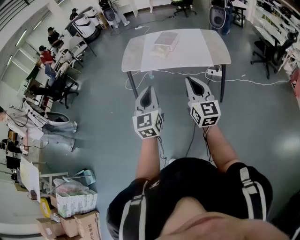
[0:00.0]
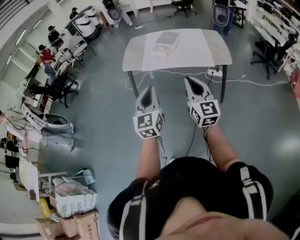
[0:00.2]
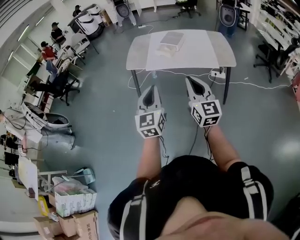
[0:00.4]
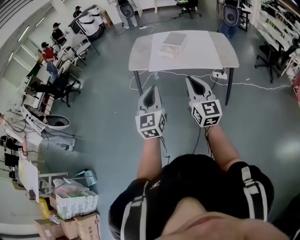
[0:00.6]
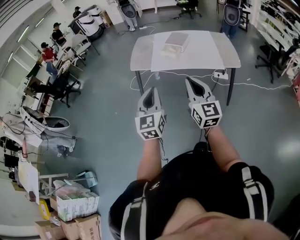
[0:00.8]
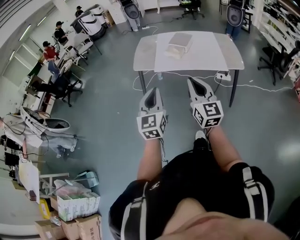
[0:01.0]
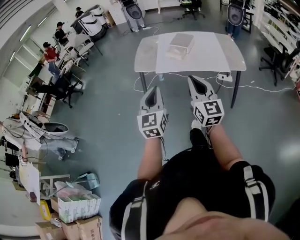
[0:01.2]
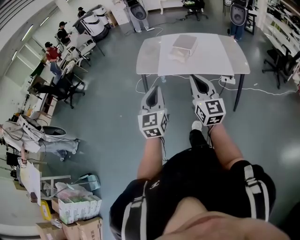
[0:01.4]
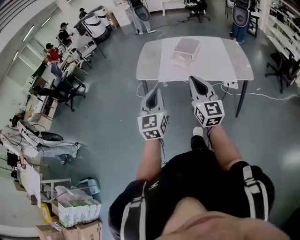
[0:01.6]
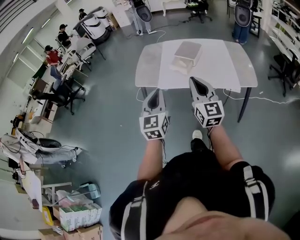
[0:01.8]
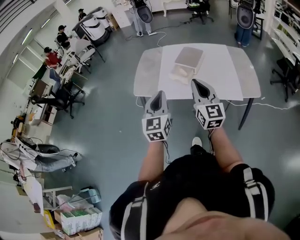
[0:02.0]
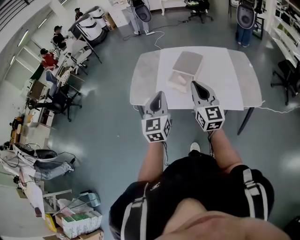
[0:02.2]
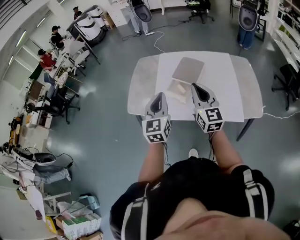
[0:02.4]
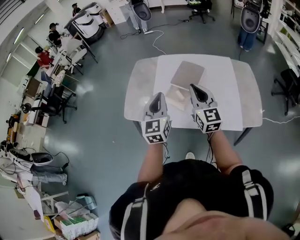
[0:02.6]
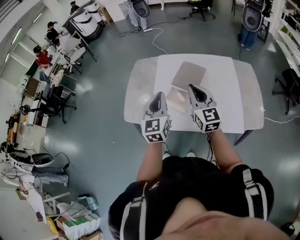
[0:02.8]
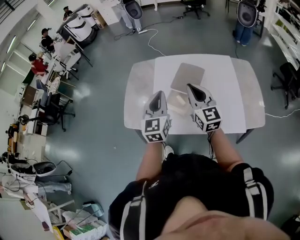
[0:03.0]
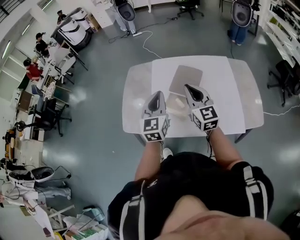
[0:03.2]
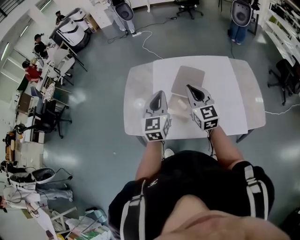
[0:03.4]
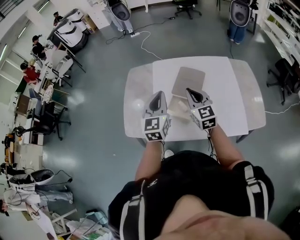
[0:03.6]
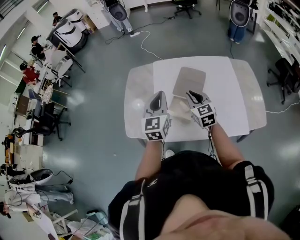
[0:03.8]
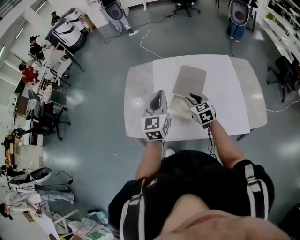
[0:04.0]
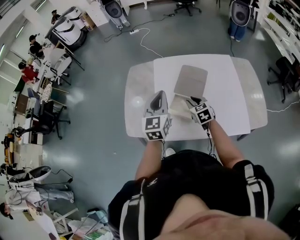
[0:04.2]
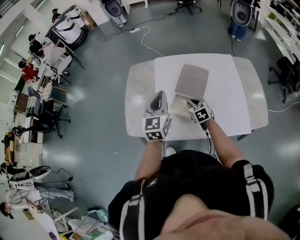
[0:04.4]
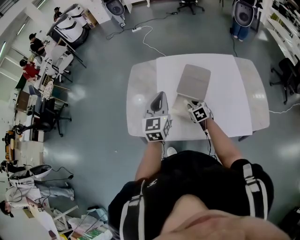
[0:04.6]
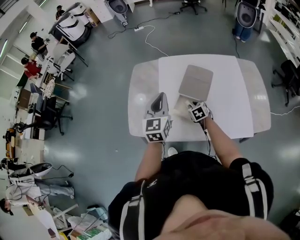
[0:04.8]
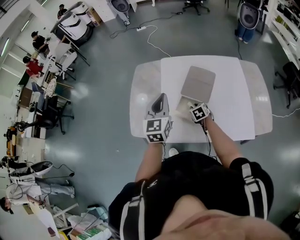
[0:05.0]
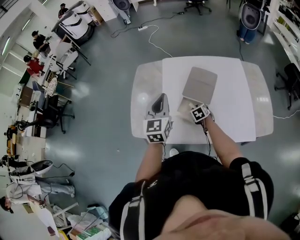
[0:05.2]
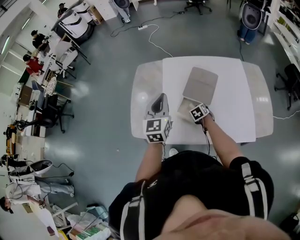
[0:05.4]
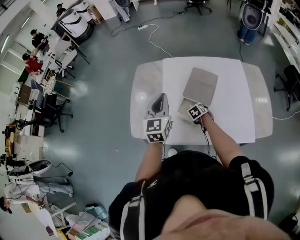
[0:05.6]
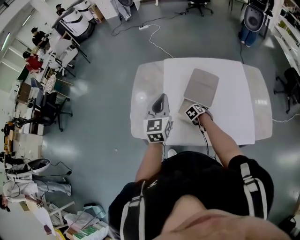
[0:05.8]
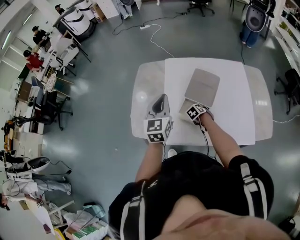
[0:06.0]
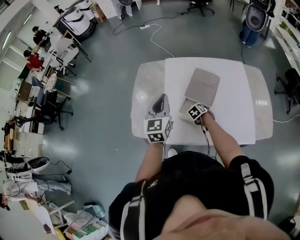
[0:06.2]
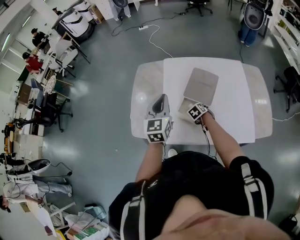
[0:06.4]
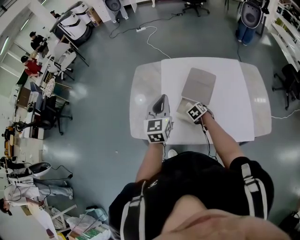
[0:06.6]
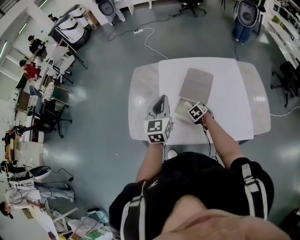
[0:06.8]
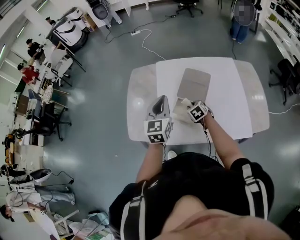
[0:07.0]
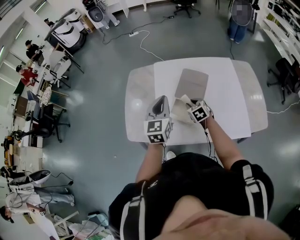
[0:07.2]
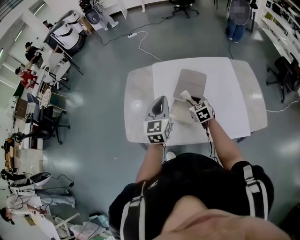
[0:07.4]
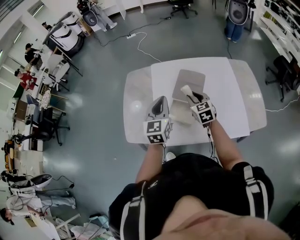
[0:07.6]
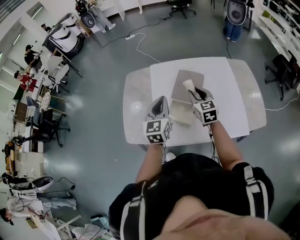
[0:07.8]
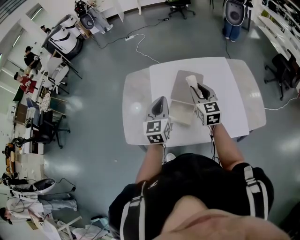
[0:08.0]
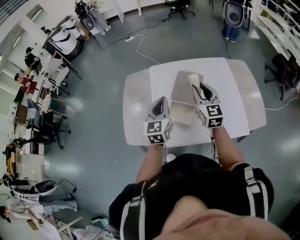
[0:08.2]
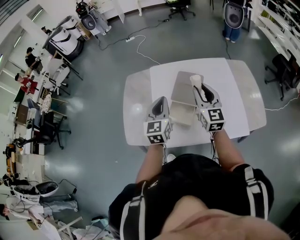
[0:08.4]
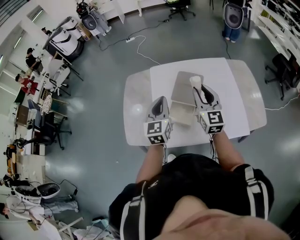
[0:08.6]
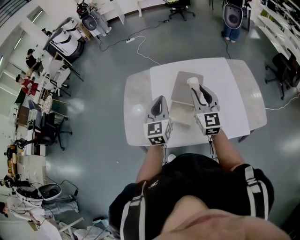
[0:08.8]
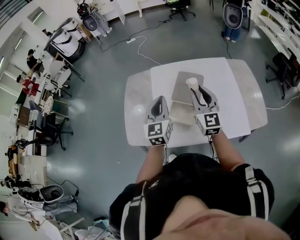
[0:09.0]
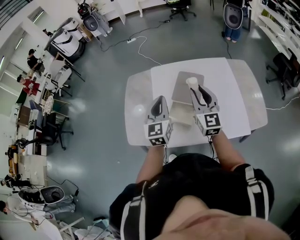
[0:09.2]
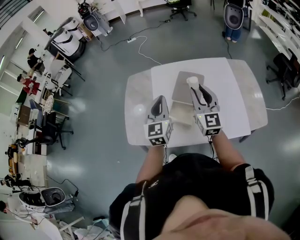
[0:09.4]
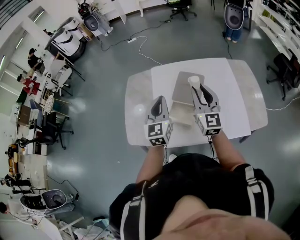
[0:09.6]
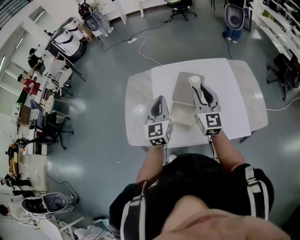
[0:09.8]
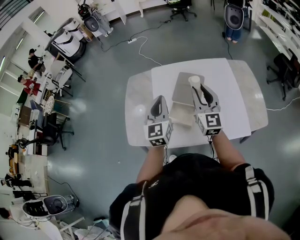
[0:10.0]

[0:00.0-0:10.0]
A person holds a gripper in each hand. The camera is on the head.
0:00.0 to 0:01.4: Both grippers move to the left and forward, some 15 cm.
0:01.4 to 0:02.8: The pair of grippers is taken forward, roughly 50 cm.
0:02.8 to 0:04.2: The left gripper heads forward, covering roughly 10 cm. The right gripper moves downward and forward, approximately 25 cm, and points its fingers roughly 40 degrees further downward.
0:04.2 to 0:05.8: The right gripper heads downward, covering roughly 20 cm, and points its fingers some 40 degrees further downward, while the left gripper shifts by roughly 5 cm.
0:05.8 to 0:07.2: The right gripper shifts some 15 cm upward, and turns by approximately 30 degrees.
0:07.2 to 0:08.6: The right gripper goes approximately 25 cm upward, and tilts its fingers some 50 degrees upward.
0:08.6 to 0:10.0: The grippers move only a little.

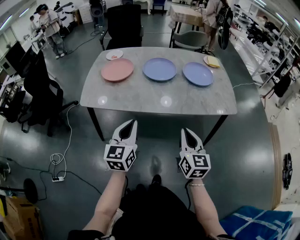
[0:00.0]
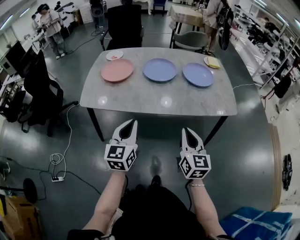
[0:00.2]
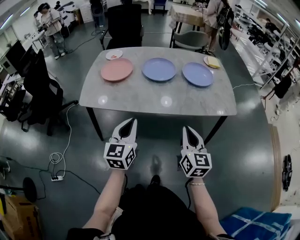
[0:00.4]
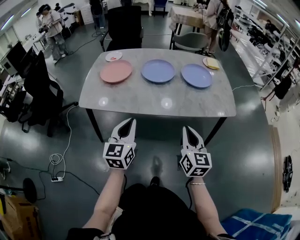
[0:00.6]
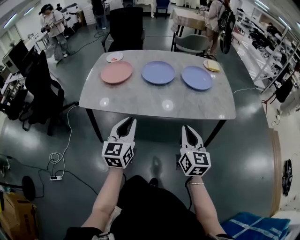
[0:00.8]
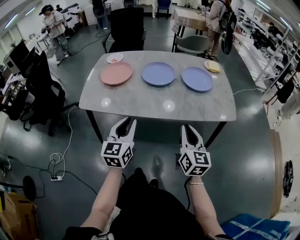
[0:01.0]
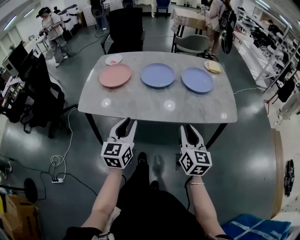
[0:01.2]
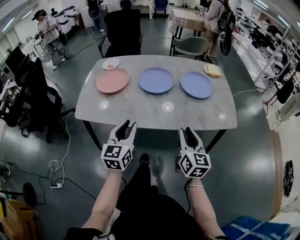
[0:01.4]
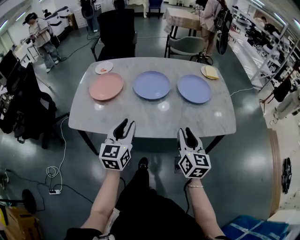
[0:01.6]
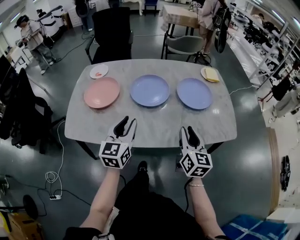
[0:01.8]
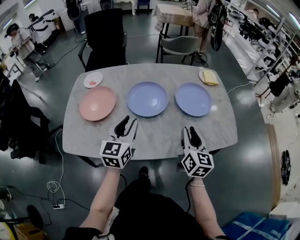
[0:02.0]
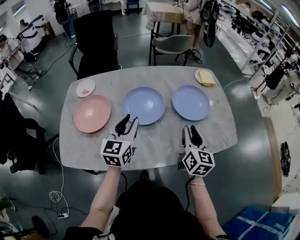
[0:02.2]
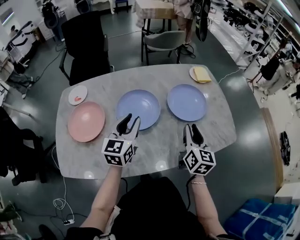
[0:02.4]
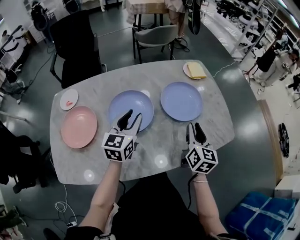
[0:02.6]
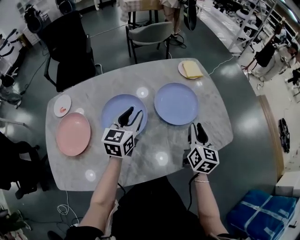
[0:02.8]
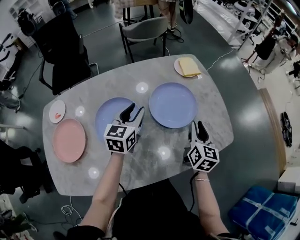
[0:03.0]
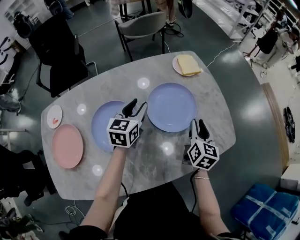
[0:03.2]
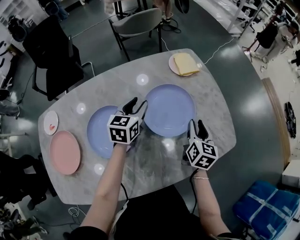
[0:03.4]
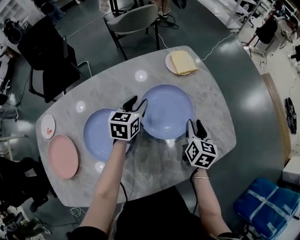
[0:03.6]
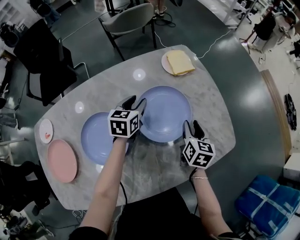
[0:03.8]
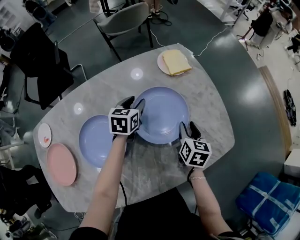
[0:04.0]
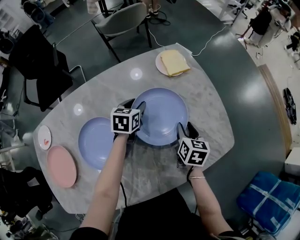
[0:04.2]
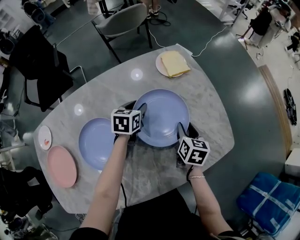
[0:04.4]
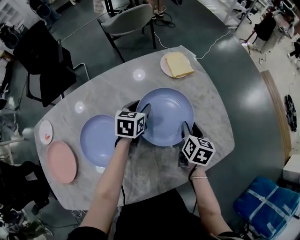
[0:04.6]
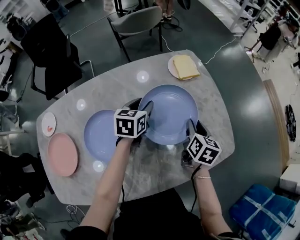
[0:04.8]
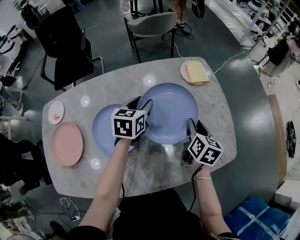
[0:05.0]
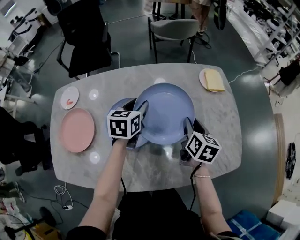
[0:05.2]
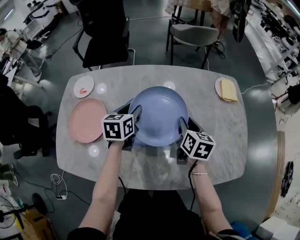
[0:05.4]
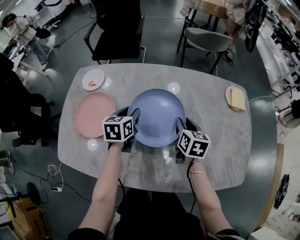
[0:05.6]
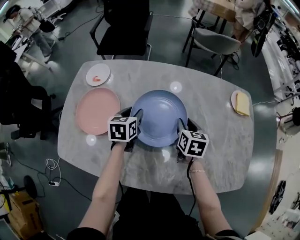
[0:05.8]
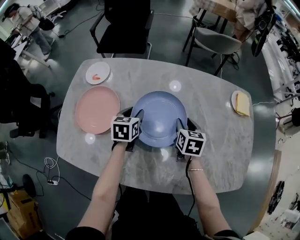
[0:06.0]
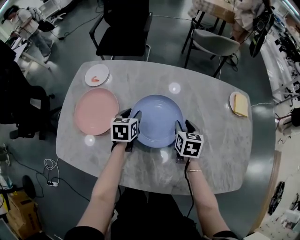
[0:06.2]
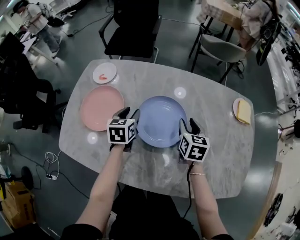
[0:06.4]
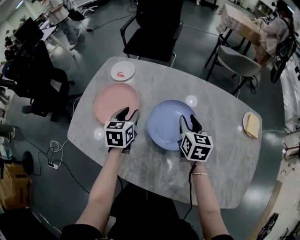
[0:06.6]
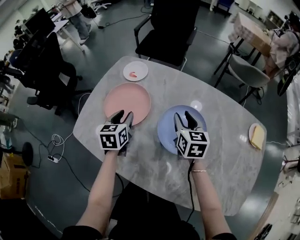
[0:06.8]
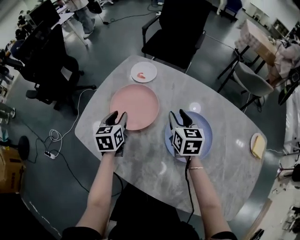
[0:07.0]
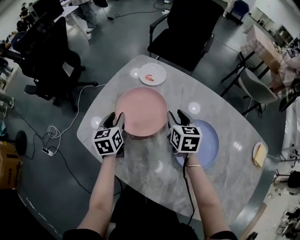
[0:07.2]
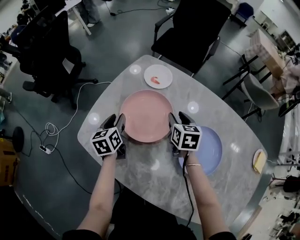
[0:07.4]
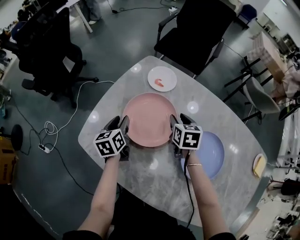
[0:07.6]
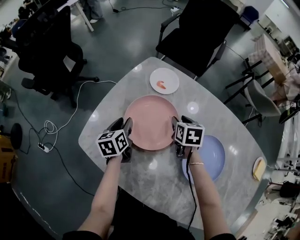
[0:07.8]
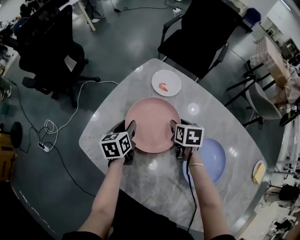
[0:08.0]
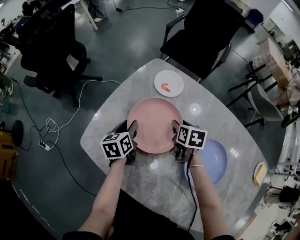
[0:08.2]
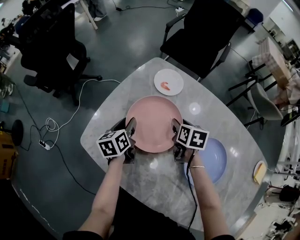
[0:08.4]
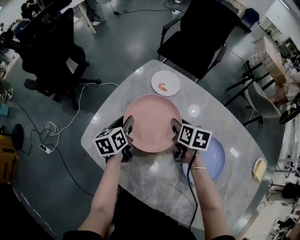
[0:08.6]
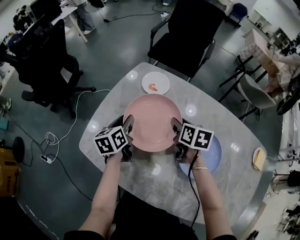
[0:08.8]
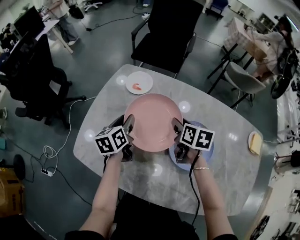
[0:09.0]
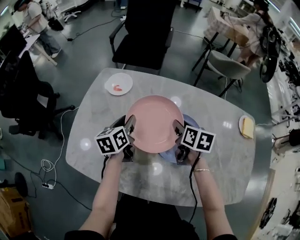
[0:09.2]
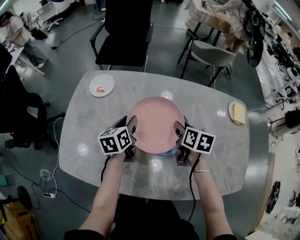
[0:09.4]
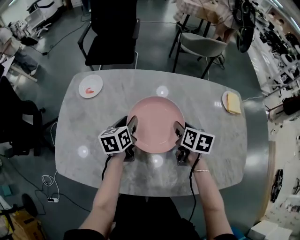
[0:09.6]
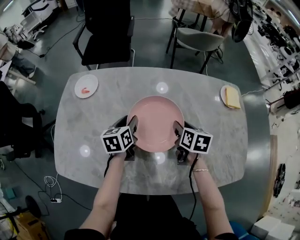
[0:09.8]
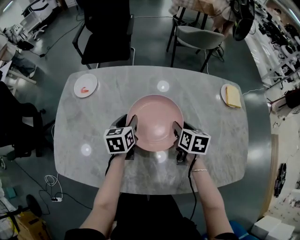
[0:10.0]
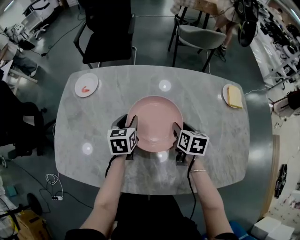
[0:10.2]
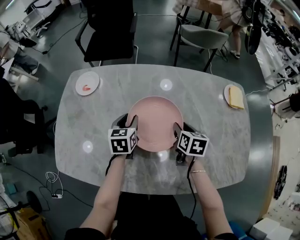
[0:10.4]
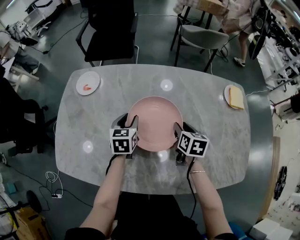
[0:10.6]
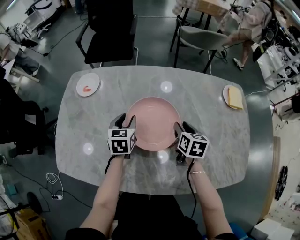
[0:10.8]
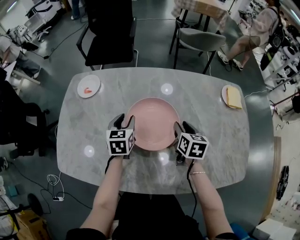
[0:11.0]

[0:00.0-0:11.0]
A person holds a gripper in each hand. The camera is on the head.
0:00.0 to 0:01.6: The grippers both shift forward by about 15 cm. The right gripper opens its fingers, while the left gripper opens its fingers.
0:01.6 to 0:03.2: The right gripper changes place by about 35 cm, and swivels approximately 30 degrees. The left gripper ends up some 40 cm from where it was, and swivels approximately 30 degrees.
0:03.2 to 0:04.8: The grippers both shift forward by approximately 5 cm.
0:04.8 to 0:06.2: The right gripper shifts by roughly 30 cm, and turns by about 40 degrees; the left gripper shifts by roughly 35 cm, and swivels roughly 40 degrees.
0:06.2 to 0:07.8: The left gripper reaches approximately 5 cm upward, then returns, and swivels roughly 40 degrees. Meanwhile the right gripper reaches roughly 10 cm upward, then returns, and turns by approximately 30 degrees.
0:07.8 to 0:09.4: The right gripper ends up roughly 30 cm from where it was, and swivels roughly 40 degrees. Meanwhile the left gripper changes place by approximately 25 cm, and turns by approximately 30 degrees.
0:09.4 to 0:11.0: The grippers both shift to the right by some 5 cm. The left gripper swivels approximately 30 degrees.

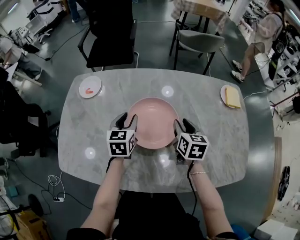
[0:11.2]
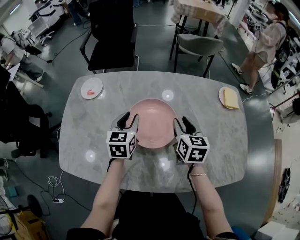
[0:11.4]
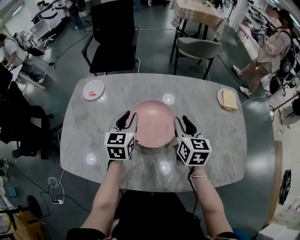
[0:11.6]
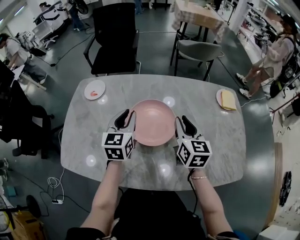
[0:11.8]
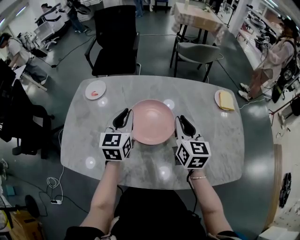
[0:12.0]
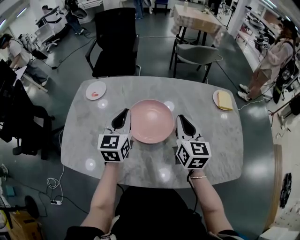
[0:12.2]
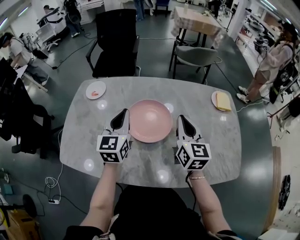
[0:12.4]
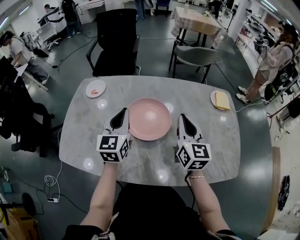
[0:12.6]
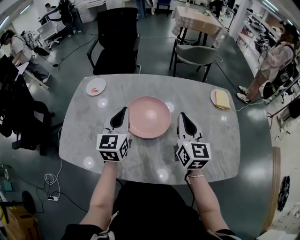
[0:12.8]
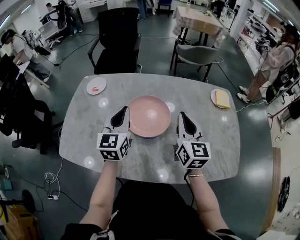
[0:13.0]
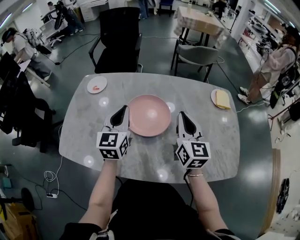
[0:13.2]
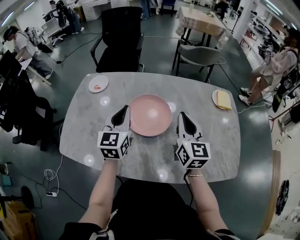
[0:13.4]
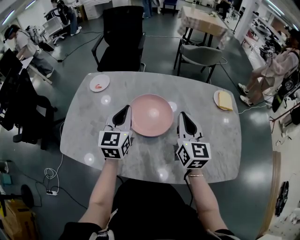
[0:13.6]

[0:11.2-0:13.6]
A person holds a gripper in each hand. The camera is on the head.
0:11.2 to 0:12.4: The two grippers go approximately 15 cm upward and backward. The right gripper turns by approximately 30 degrees, and closes, while the left gripper rotates approximately 20 degrees, and closes up.
0:12.4 to 0:13.6: There are only small adjustments of the grippers.
